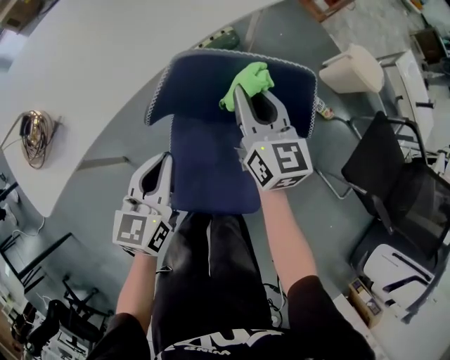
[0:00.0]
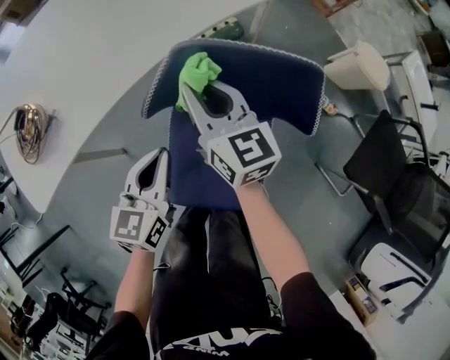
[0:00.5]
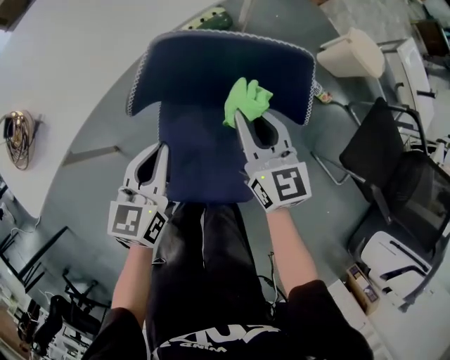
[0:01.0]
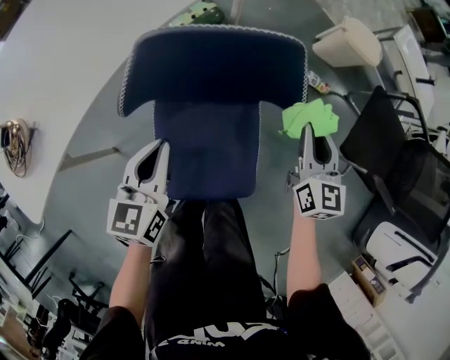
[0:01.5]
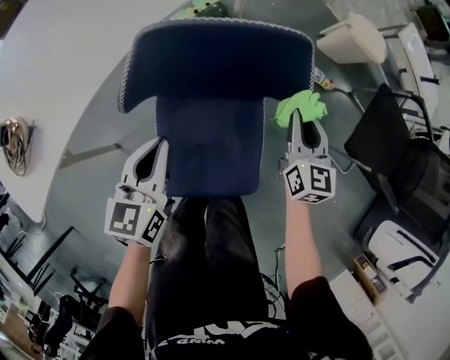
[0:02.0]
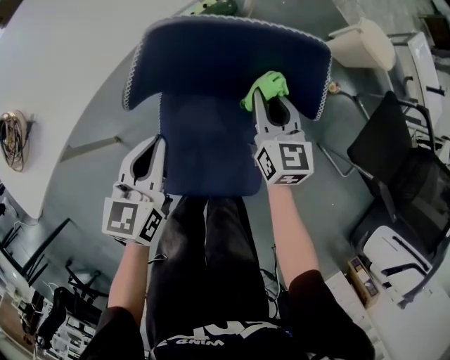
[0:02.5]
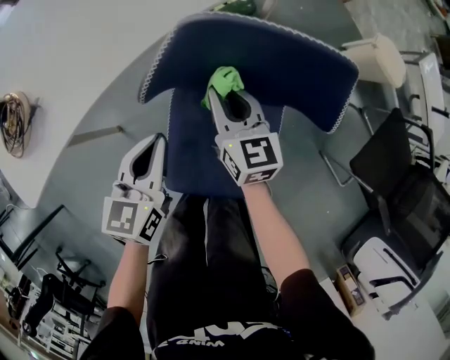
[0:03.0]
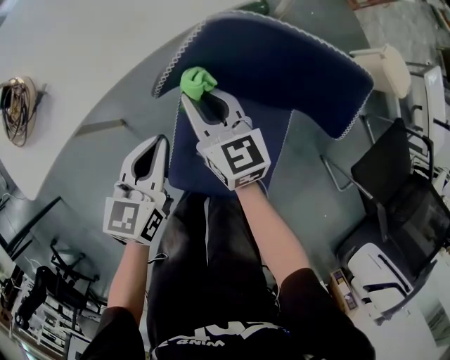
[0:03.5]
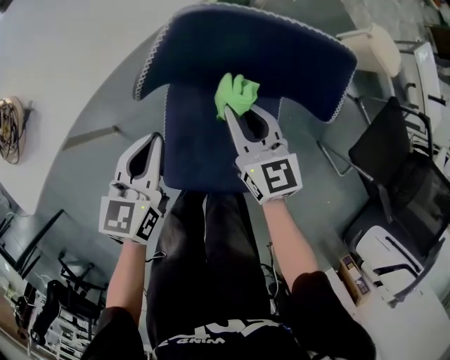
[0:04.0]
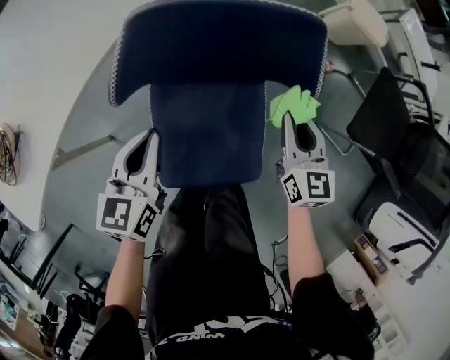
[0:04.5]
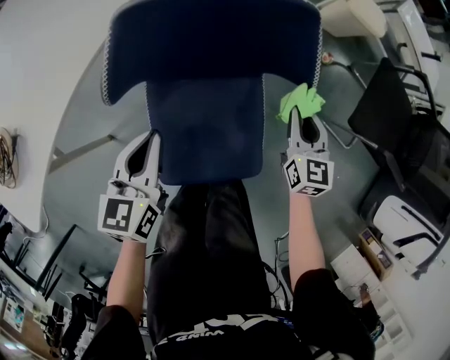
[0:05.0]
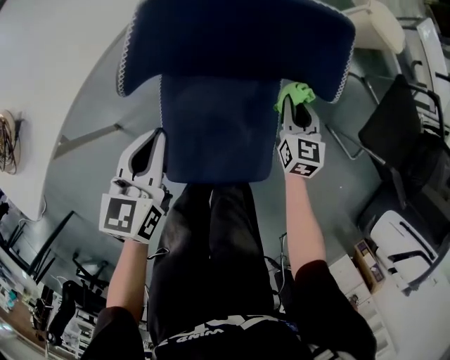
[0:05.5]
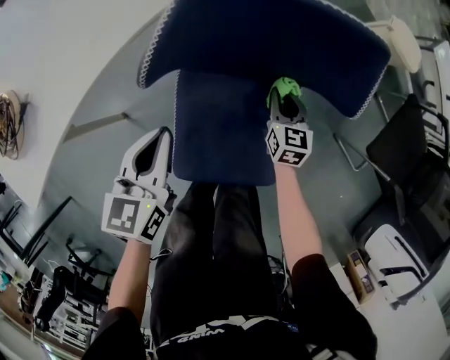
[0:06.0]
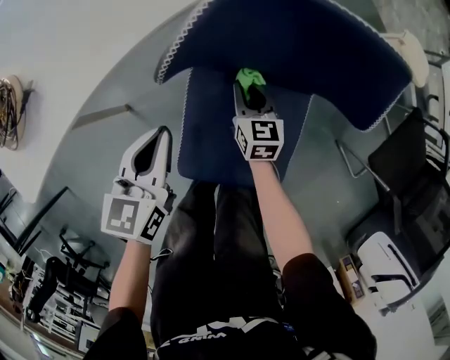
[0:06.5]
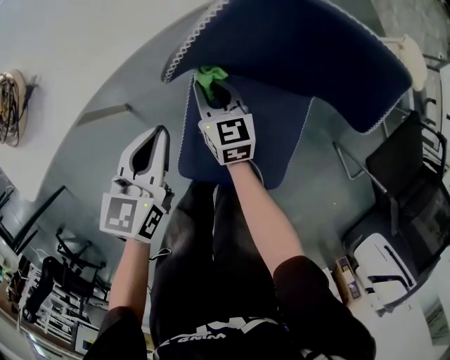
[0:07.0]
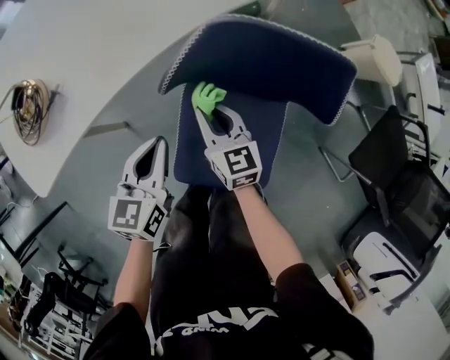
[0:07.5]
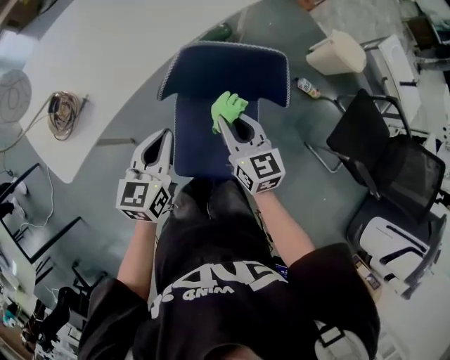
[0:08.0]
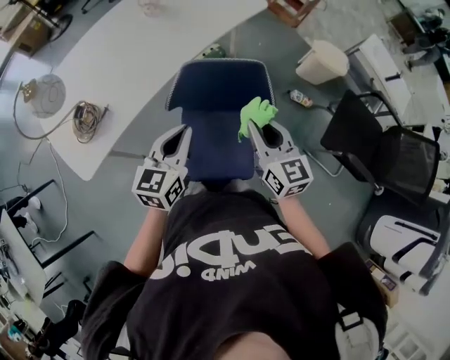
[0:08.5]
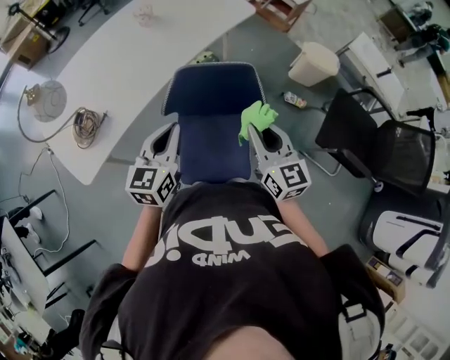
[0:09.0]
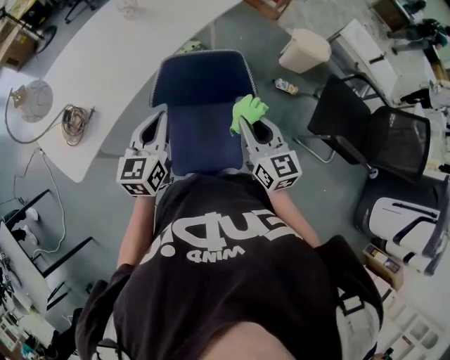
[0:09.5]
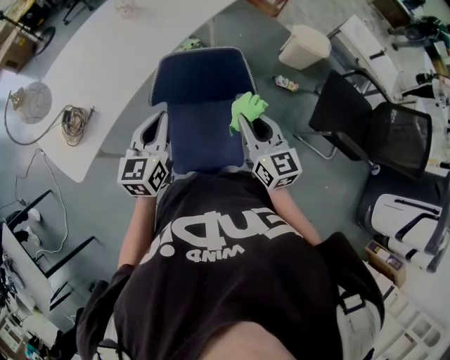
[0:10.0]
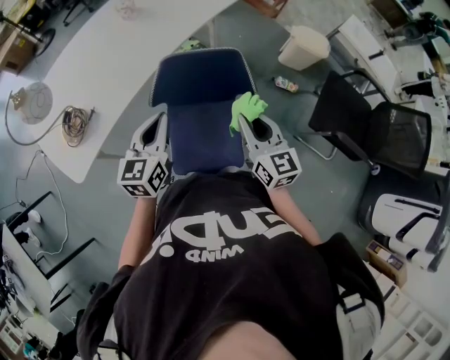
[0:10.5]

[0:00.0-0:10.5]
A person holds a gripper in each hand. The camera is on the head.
0:00.0 to 0:02.0: The right gripper goes some 20 cm to the right, downward and backward, and changes its angle by some 20 degrees.
0:02.0 to 0:04.0: The left gripper moves about 5 cm, while the right gripper turns by roughly 30 degrees.
0:04.0 to 0:06.5: The right gripper moves downward, some 15 cm, and travels to the right and back again, roughly 25 cm each way. The left gripper goes to the right and returns, some 5 cm each way.
0:06.5 to 0:08.5: The right gripper travels upward by some 40 cm, and changes its angle by roughly 20 degrees, while the left gripper heads upward, covering some 30 cm, and rotates approximately 20 degrees.
0:08.5 to 0:10.5: The right gripper moves roughly 5 cm.

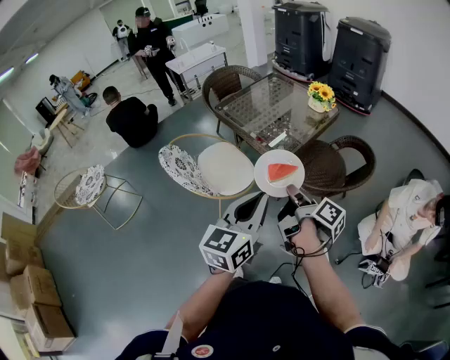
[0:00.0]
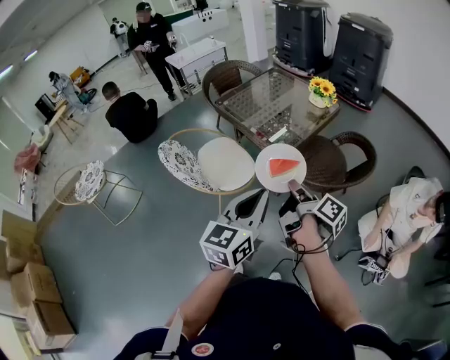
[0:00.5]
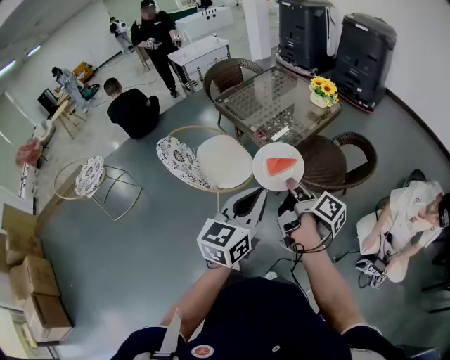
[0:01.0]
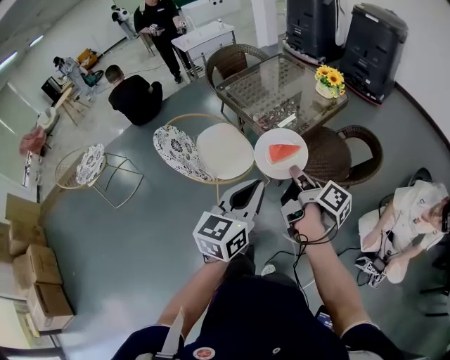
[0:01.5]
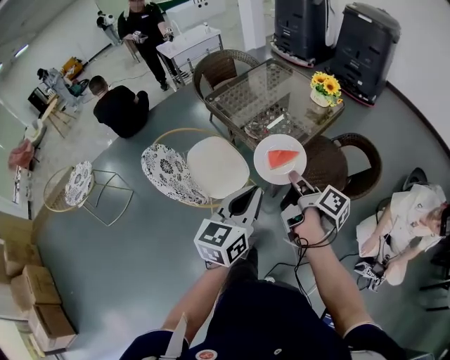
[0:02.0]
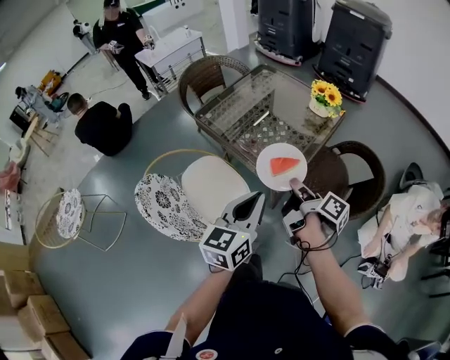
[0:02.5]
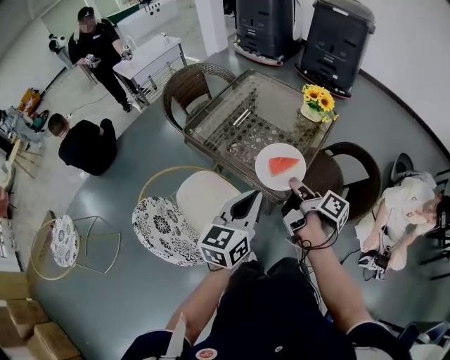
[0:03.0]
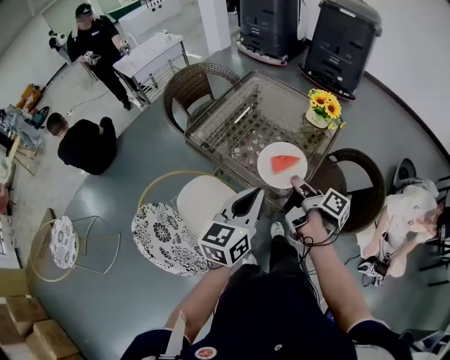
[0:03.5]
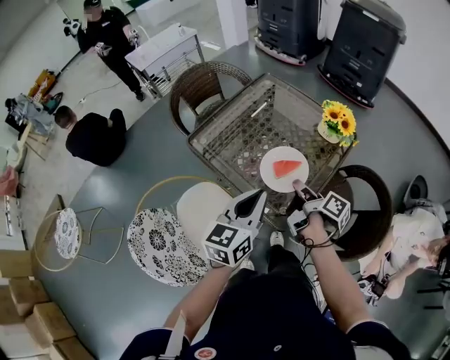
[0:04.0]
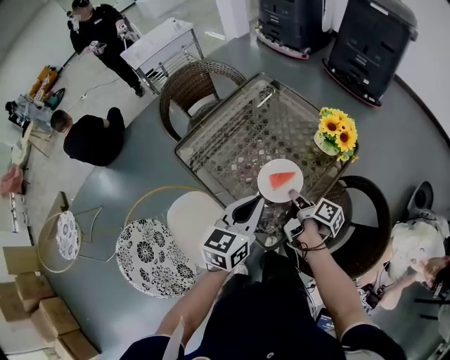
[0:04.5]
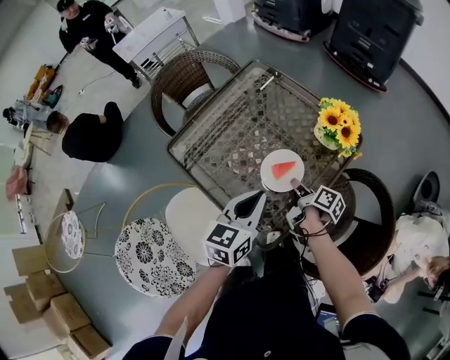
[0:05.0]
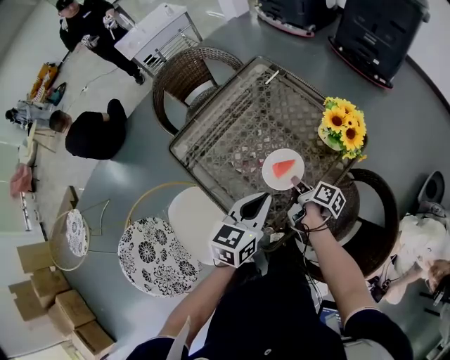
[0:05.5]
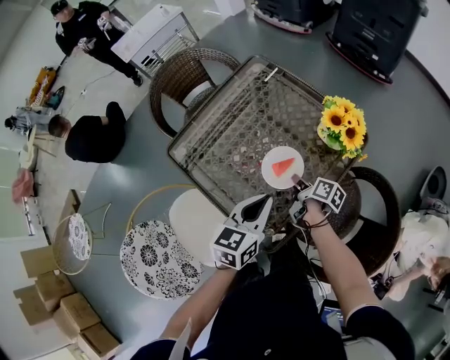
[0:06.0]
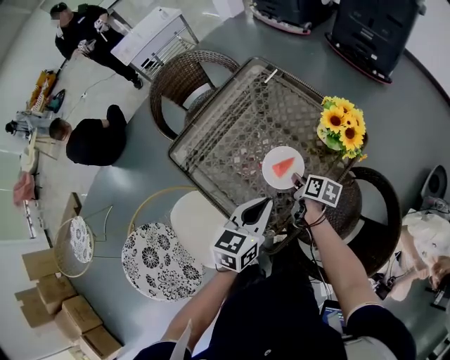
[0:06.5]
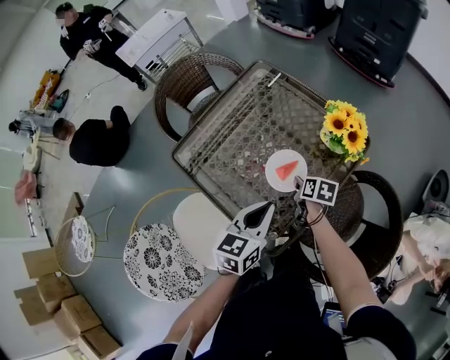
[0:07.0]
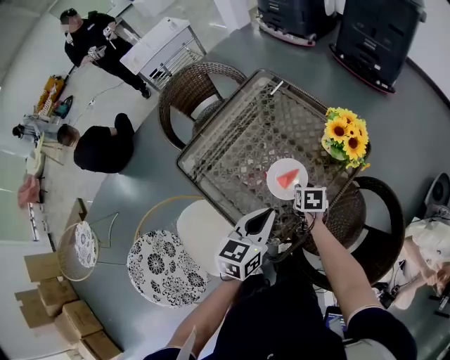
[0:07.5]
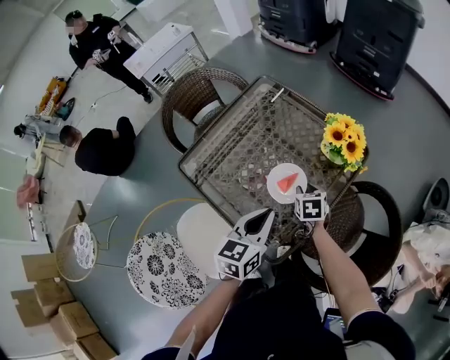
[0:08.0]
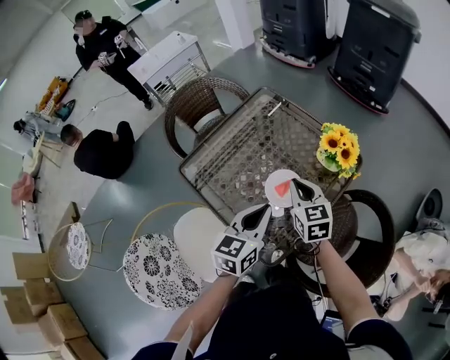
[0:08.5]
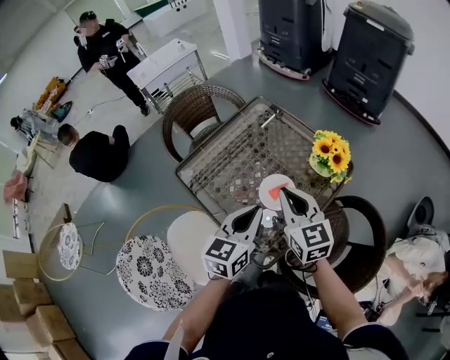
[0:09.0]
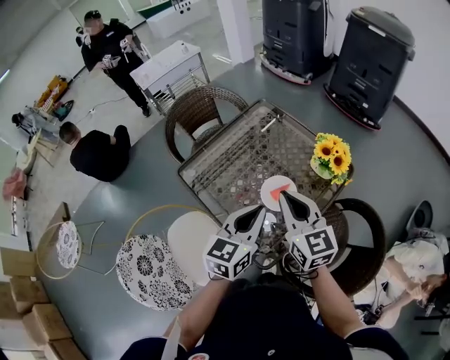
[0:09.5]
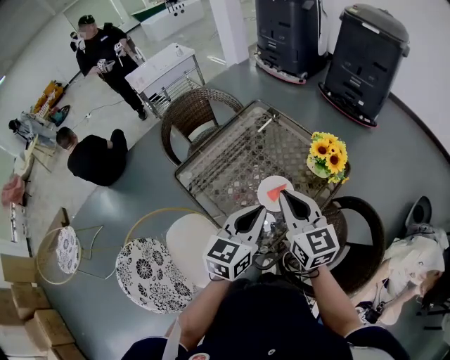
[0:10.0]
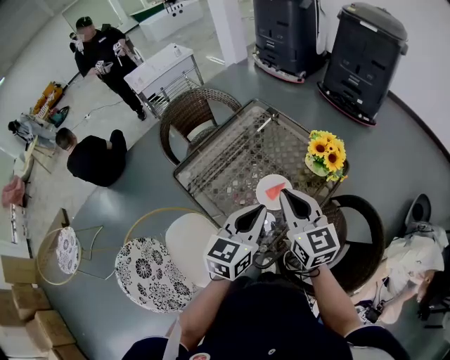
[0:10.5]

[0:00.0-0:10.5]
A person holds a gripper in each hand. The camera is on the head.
0:00.0 to 0:02.0: The right gripper goes roughly 10 cm forward; the left gripper is displaced forward and downward by approximately 10 cm.
0:02.0 to 0:04.0: Both grippers move forward, roughly 30 cm.
0:04.0 to 0:06.5: The left gripper travels forward, downward and to the right by about 15 cm. The right gripper goes about 25 cm downward and forward, and changes its angle by roughly 40 degrees.
0:06.5 to 0:08.5: The right gripper shifts about 20 cm upward, twists about 50 degrees counterclockwise, seen from behind, and opens, then closes again.
0:08.5 to 0:10.5: The right gripper heads upward and backward, covering roughly 15 cm; the left gripper shifts by about 5 cm.

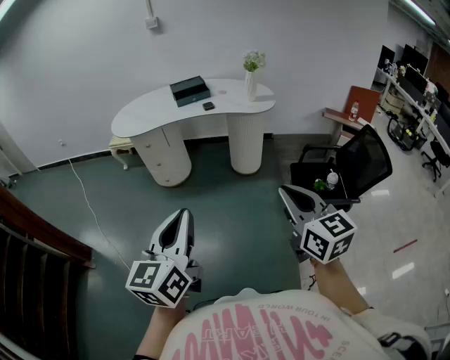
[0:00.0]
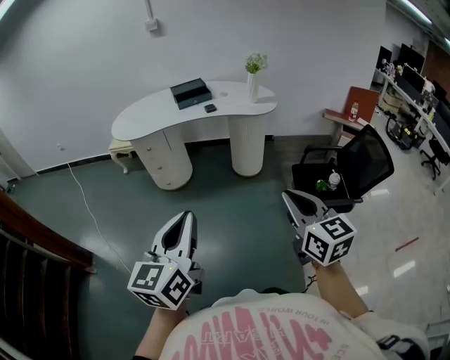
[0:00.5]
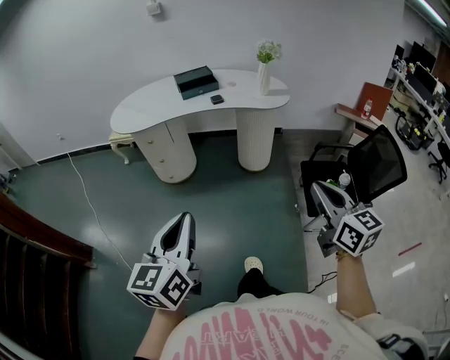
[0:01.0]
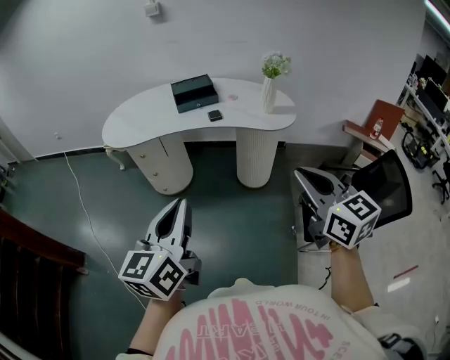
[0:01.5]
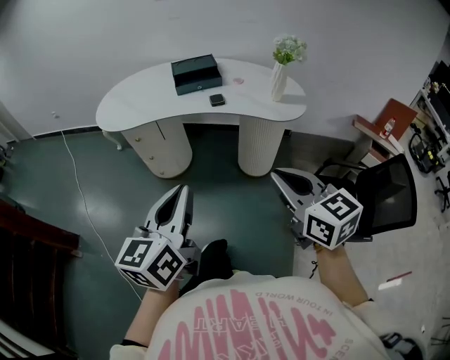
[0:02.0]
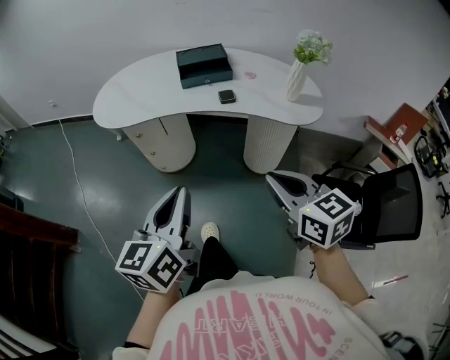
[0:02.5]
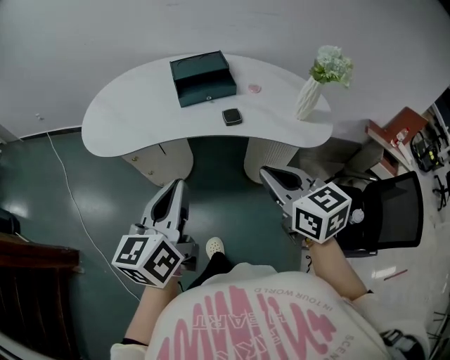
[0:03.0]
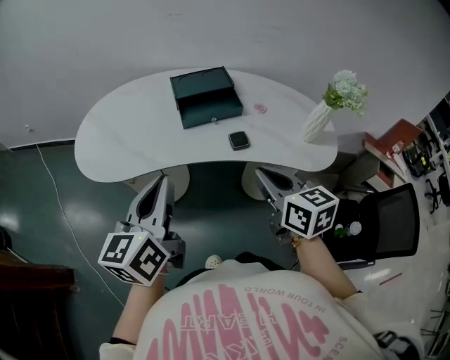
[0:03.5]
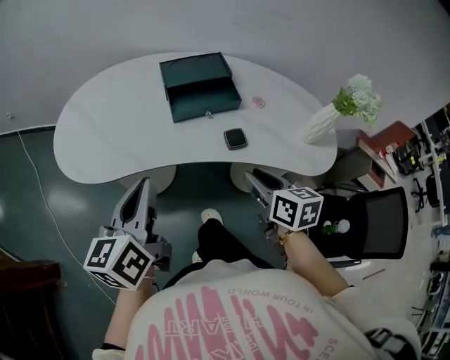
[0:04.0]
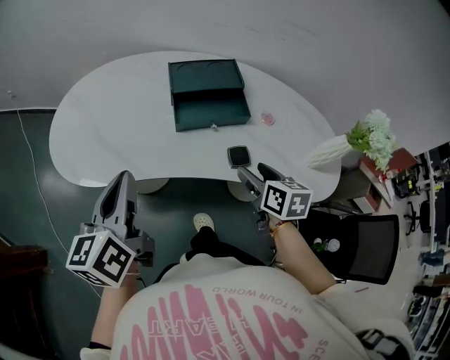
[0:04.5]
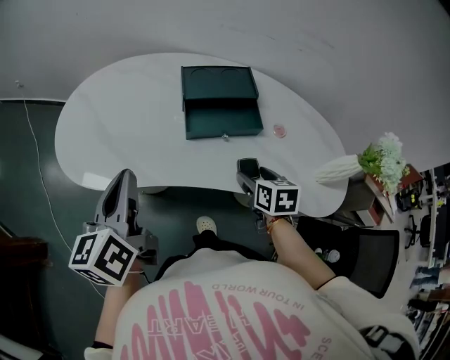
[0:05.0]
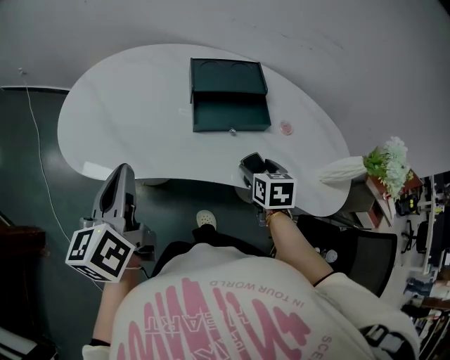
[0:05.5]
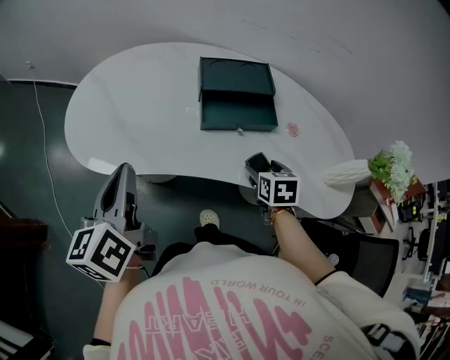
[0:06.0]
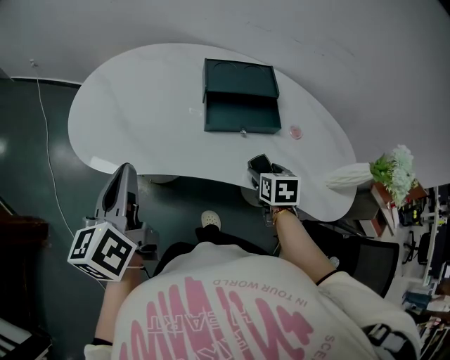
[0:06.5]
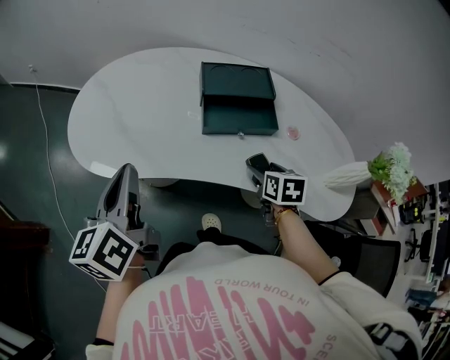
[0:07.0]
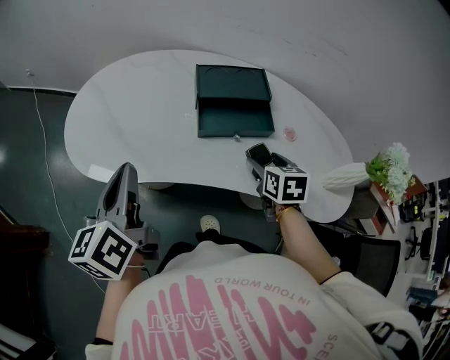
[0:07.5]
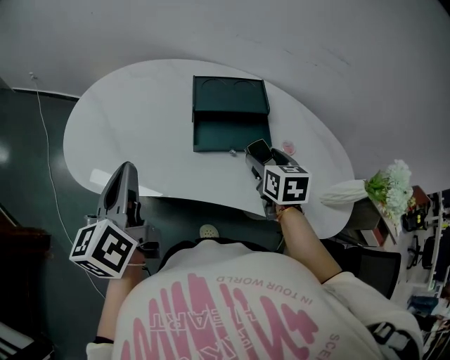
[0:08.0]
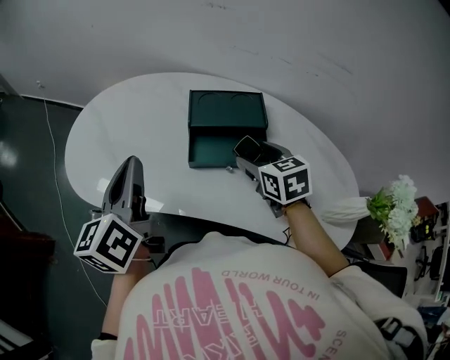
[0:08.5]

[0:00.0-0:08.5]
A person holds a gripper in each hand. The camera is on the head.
0:00.0 to 0:02.0: Both grippers move forward, about 30 cm.
0:02.0 to 0:04.0: The grippers both shift forward by about 40 cm. The right gripper turns by some 30 degrees.
0:04.0 to 0:06.5: The right gripper shifts about 15 cm forward and downward, changes its angle by about 30 degrees, and opens up. Meanwhile the left gripper shifts some 10 cm to the left and forward, and rotates approximately 20 degrees.
0:06.5 to 0:08.5: The right gripper moves forward and upward, some 15 cm, and changes its angle by approximately 30 degrees; the left gripper is displaced forward and to the right by some 10 cm.
